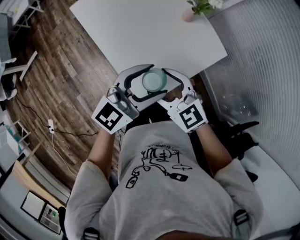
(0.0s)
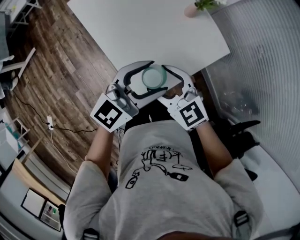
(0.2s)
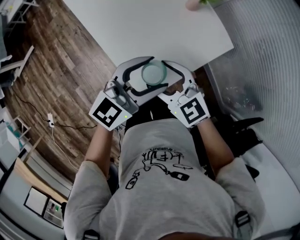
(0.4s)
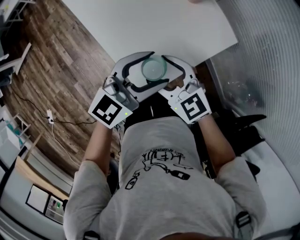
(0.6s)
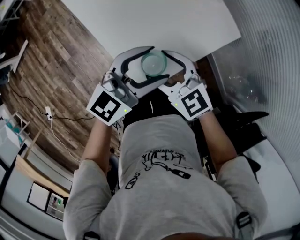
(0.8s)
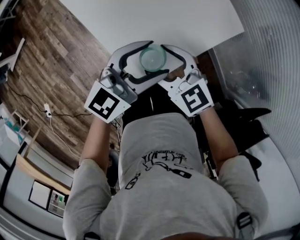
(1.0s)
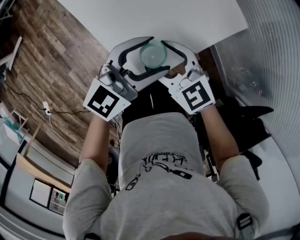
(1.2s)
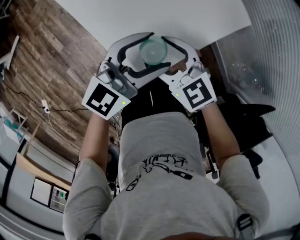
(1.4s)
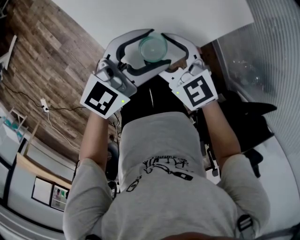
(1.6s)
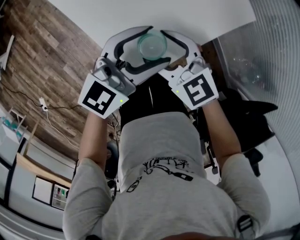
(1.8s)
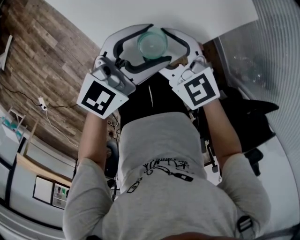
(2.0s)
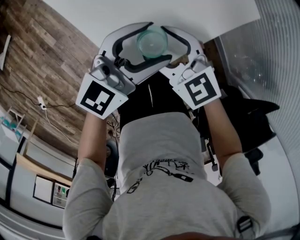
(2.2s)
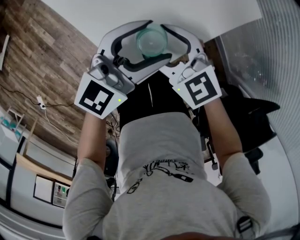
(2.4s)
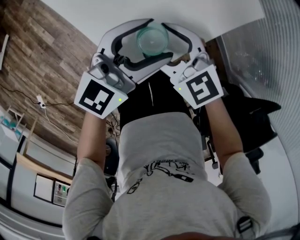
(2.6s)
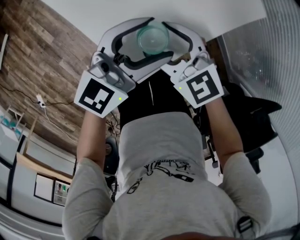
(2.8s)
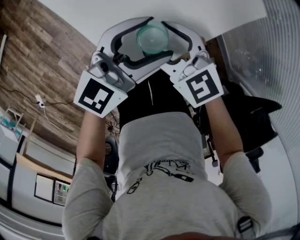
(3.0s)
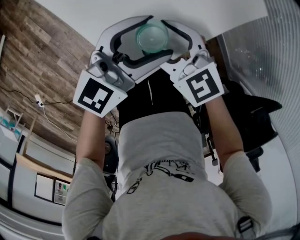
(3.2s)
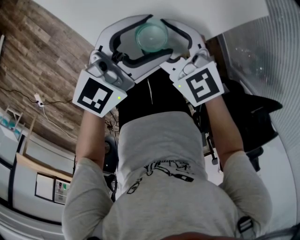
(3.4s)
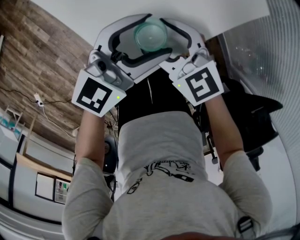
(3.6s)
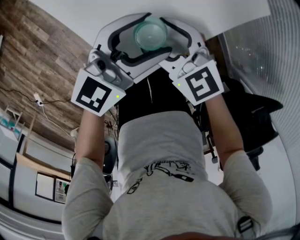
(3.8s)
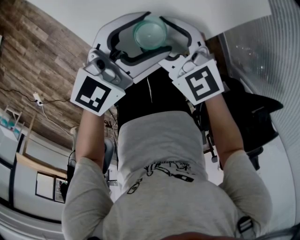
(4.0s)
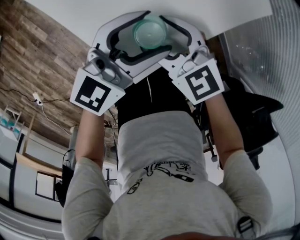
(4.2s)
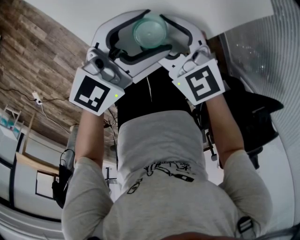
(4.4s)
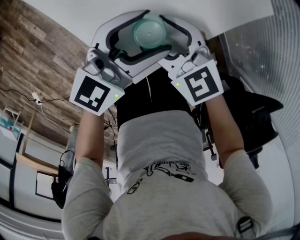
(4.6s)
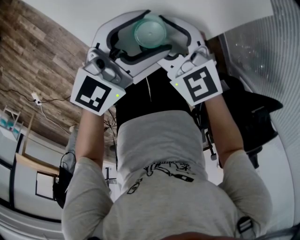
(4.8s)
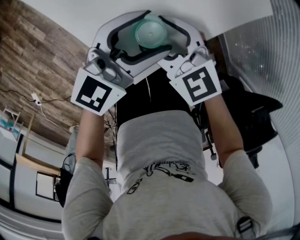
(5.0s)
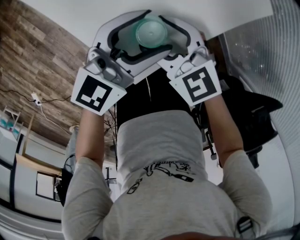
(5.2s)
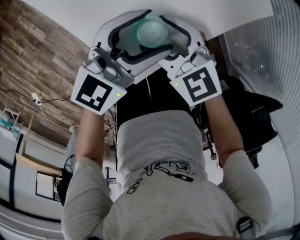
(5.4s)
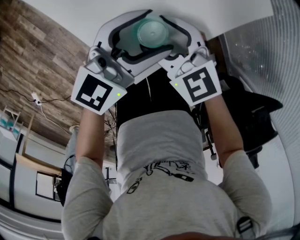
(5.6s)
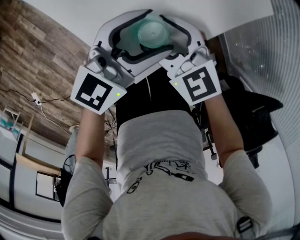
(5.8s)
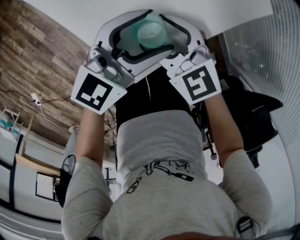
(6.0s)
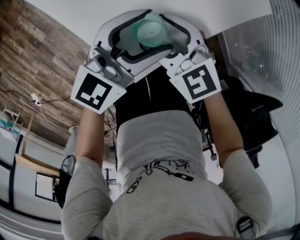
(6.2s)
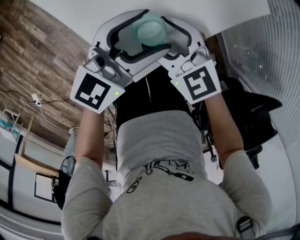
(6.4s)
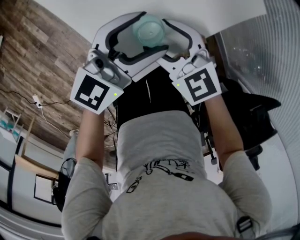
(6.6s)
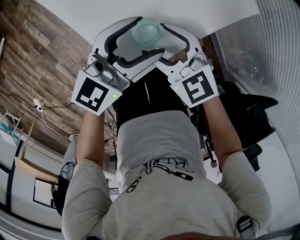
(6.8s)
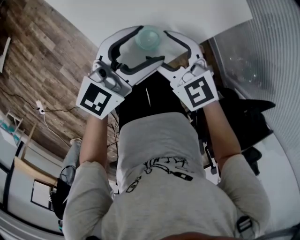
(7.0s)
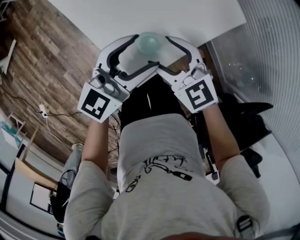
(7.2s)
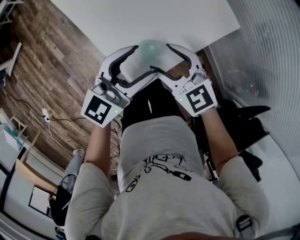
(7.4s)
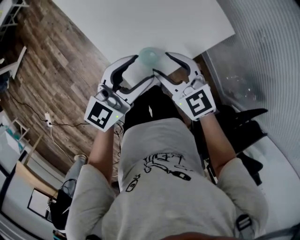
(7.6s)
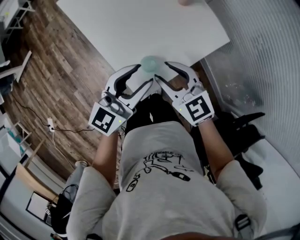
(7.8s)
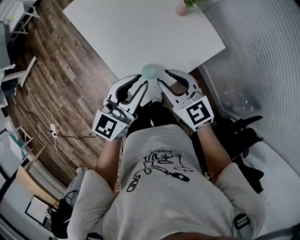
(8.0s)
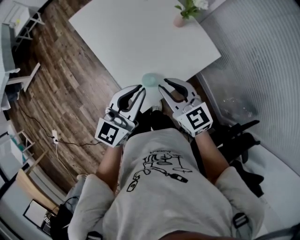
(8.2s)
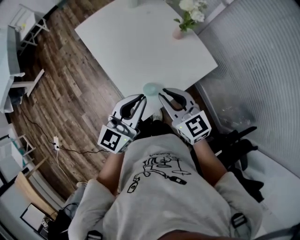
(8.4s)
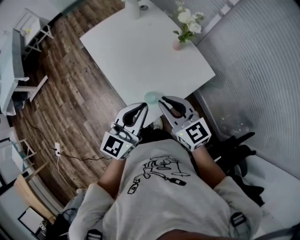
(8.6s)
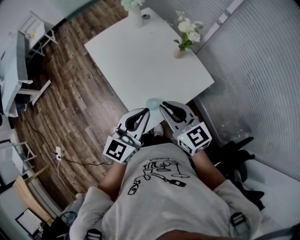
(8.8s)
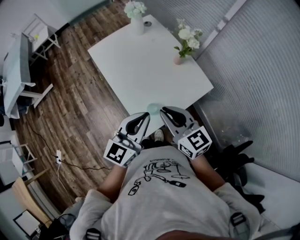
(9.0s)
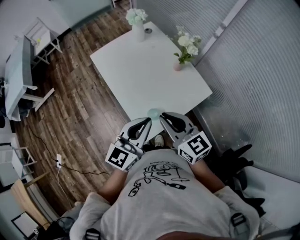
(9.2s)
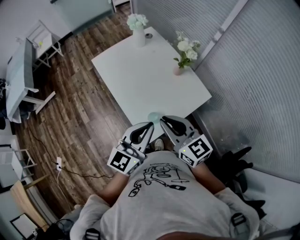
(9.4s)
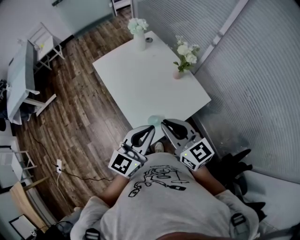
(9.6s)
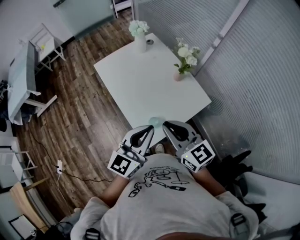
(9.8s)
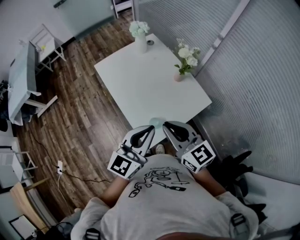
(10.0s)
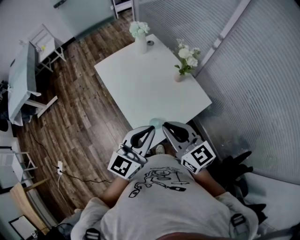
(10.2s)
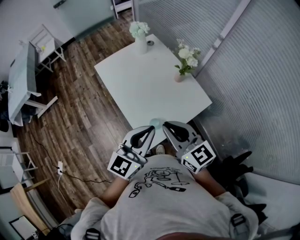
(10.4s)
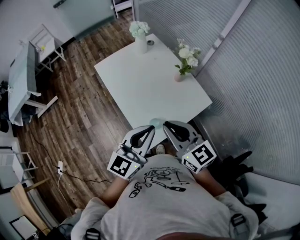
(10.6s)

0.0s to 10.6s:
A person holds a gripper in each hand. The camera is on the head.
0.0s to 1.6s: Both grippers move downward, roughly 15 cm.
1.6s to 3.0s: The grippers make only small movements.
3.0s to 4.6s: The grippers move only a little.
4.6s to 6.0s: Both grippers stay put.
6.0s to 7.6s: Both grippers move upward, approximately 15 cm.
7.6s to 9.0s: The grippers both shift upward by some 15 cm. The right gripper rotates approximately 20 degrees, and closes up. The left gripper closes up.
9.0s to 10.6s: The two grippers go roughly 5 cm upward.

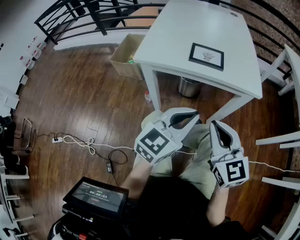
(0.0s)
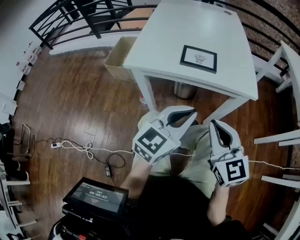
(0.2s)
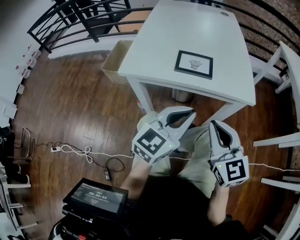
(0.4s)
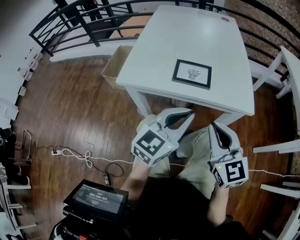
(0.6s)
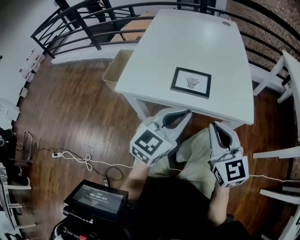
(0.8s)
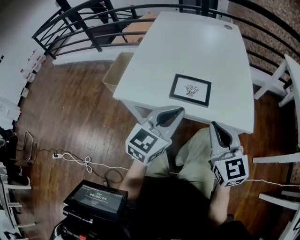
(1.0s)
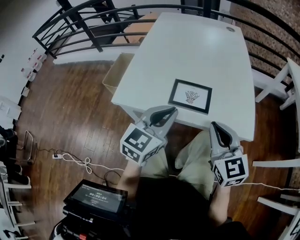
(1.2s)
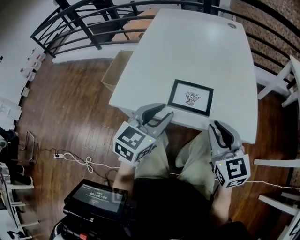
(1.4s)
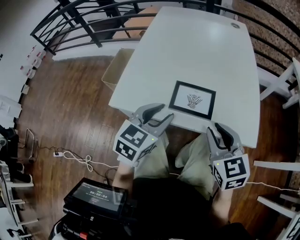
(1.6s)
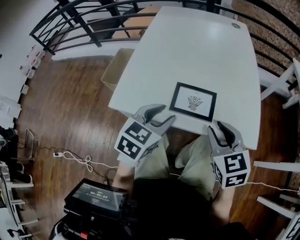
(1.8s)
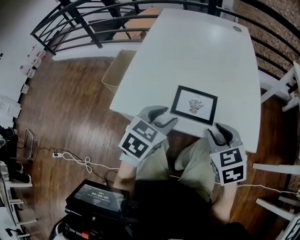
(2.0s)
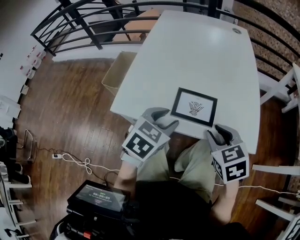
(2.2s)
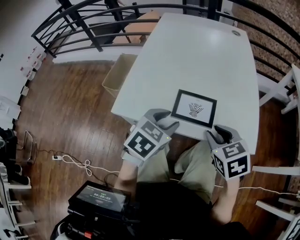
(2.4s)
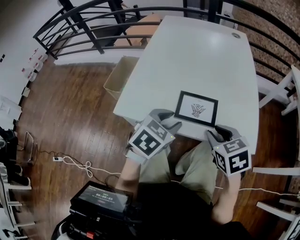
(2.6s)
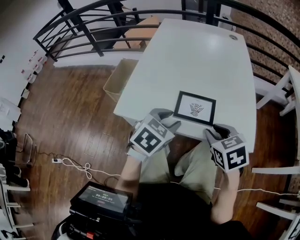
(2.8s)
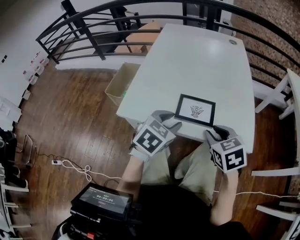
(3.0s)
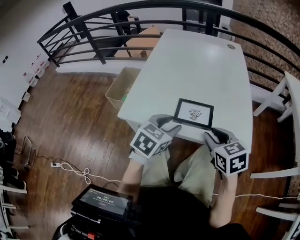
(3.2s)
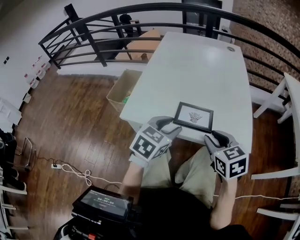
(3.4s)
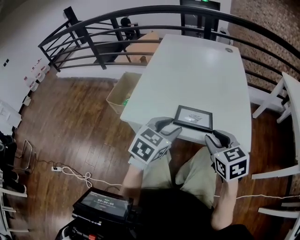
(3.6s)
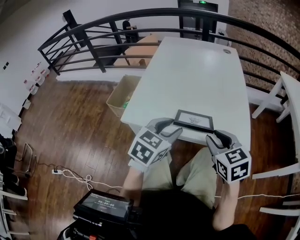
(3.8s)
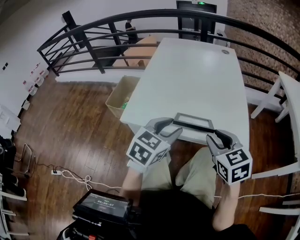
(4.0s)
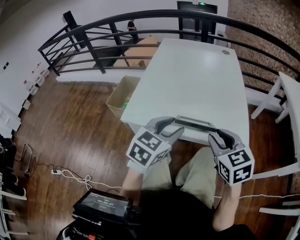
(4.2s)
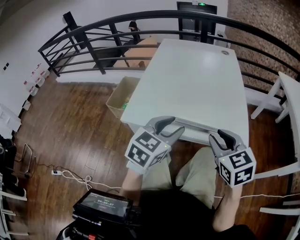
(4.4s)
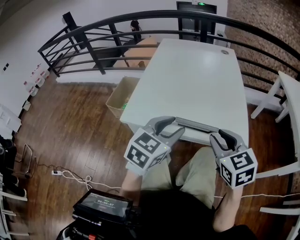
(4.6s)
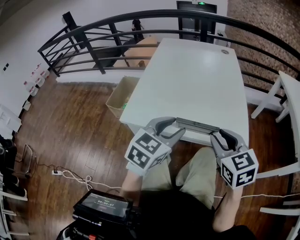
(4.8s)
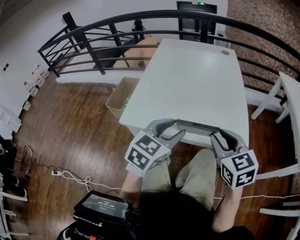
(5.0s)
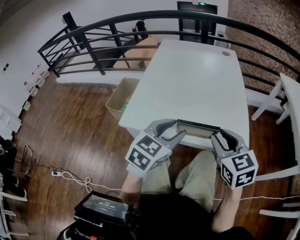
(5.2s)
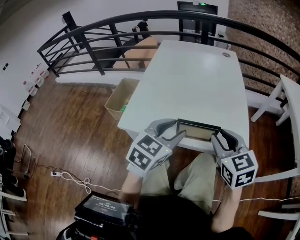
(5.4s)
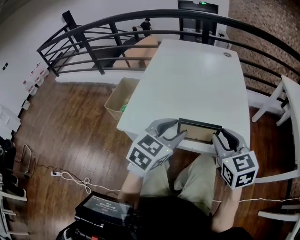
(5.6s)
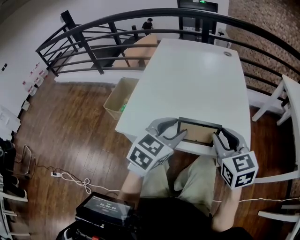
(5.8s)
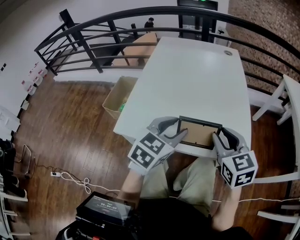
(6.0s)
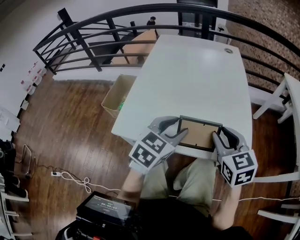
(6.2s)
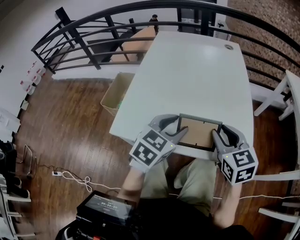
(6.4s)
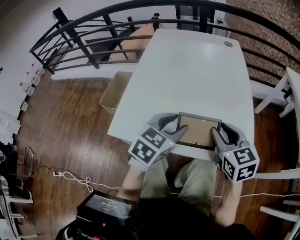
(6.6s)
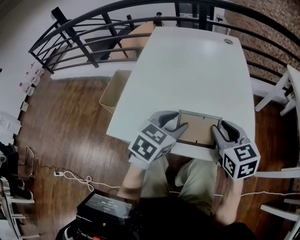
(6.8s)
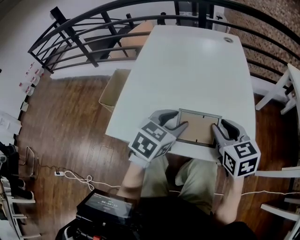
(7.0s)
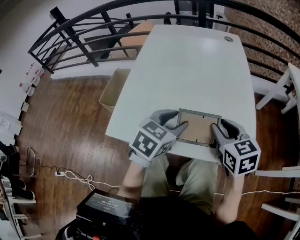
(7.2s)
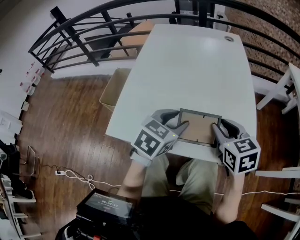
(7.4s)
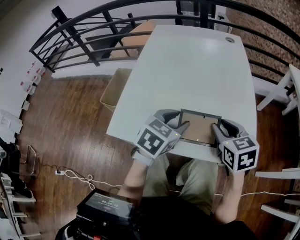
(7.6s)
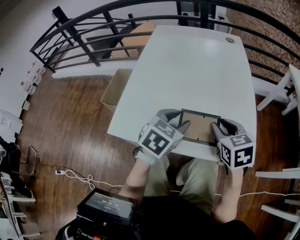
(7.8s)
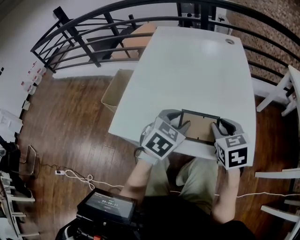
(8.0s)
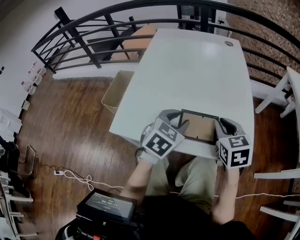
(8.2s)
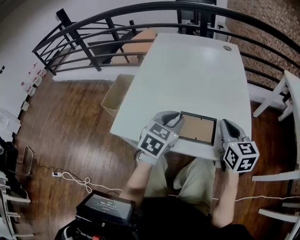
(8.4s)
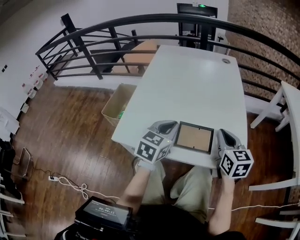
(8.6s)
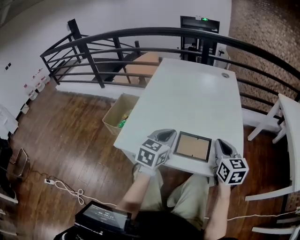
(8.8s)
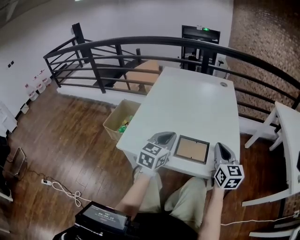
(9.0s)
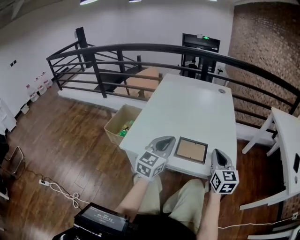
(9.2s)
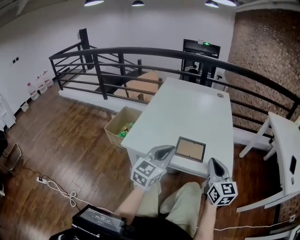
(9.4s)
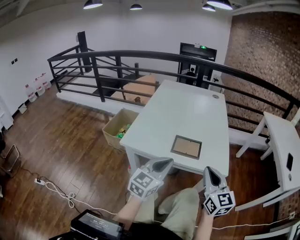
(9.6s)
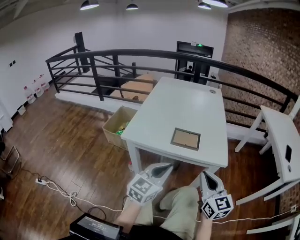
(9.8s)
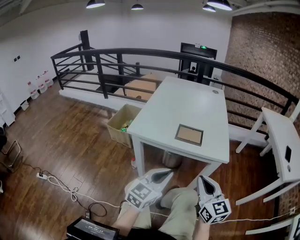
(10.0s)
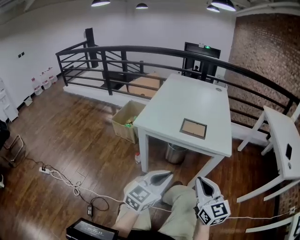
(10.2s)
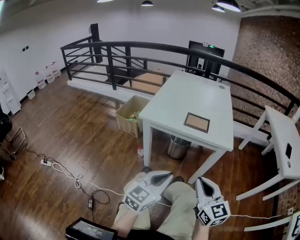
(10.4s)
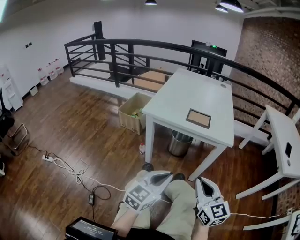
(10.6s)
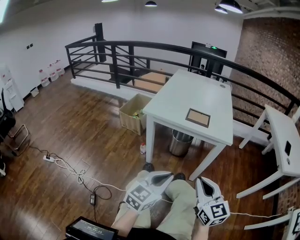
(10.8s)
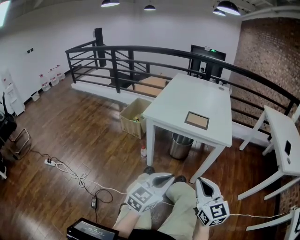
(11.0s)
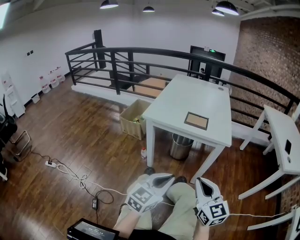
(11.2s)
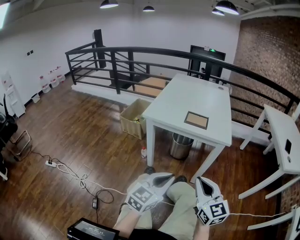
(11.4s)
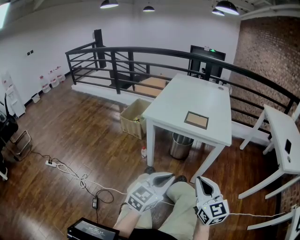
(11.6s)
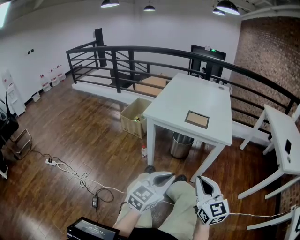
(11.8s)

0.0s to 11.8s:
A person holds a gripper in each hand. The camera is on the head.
0.0s to 1.4s: Both grippers travel together forward, roughly 20 cm. The left gripper opens up.
1.4s to 3.0s: The left gripper rotates approximately 20 degrees; the right gripper ends up about 5 cm from where it was, and rotates roughly 30 degrees.
3.0s to 4.4s: The two grippers go some 10 cm upward.
4.4s to 6.0s: The grippers both shift forward by roughly 5 cm.
6.0s to 7.4s: The grippers both shift forward and downward by some 10 cm.
7.4s to 8.8s: The left gripper closes up. Meanwhile the right gripper closes up.
8.8s to 10.4s: The two grippers travel together, backward, approximately 40 cm.
10.4s to 11.8s: The left gripper is displaced backward by some 5 cm.

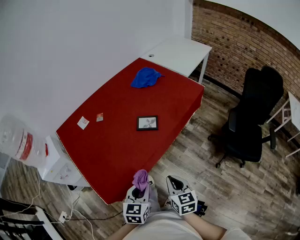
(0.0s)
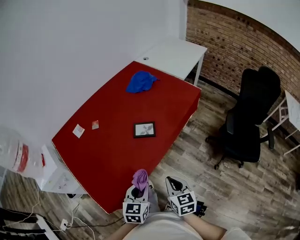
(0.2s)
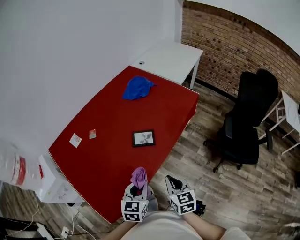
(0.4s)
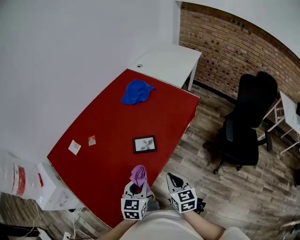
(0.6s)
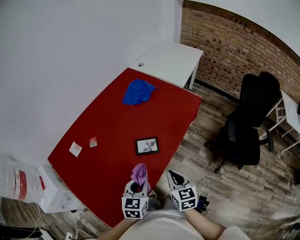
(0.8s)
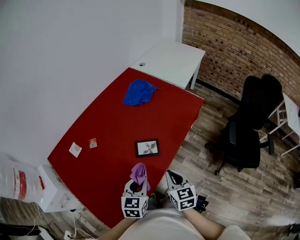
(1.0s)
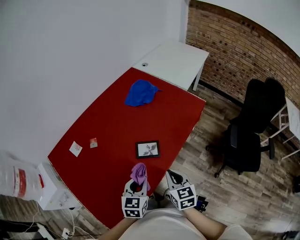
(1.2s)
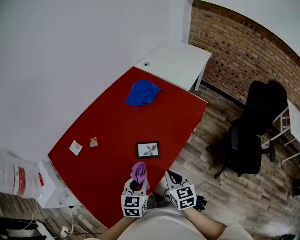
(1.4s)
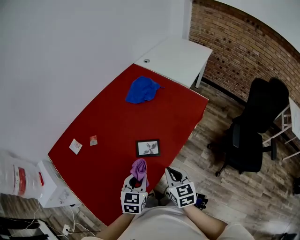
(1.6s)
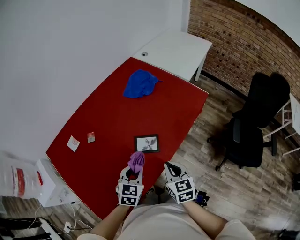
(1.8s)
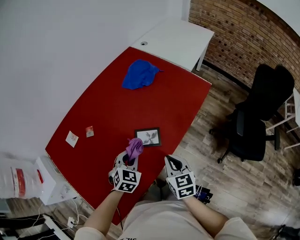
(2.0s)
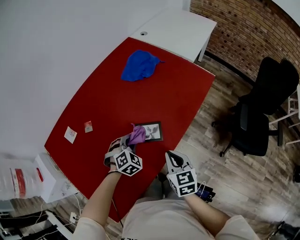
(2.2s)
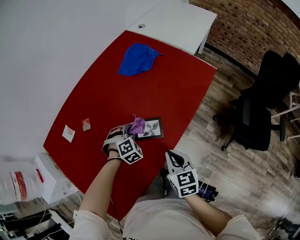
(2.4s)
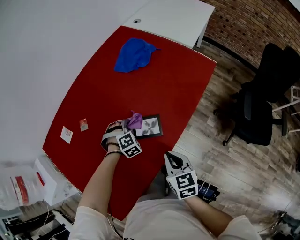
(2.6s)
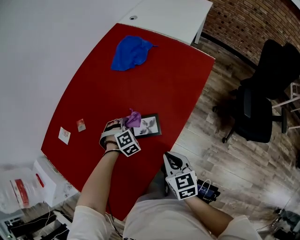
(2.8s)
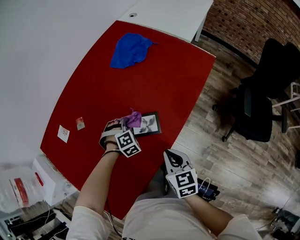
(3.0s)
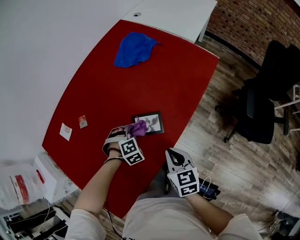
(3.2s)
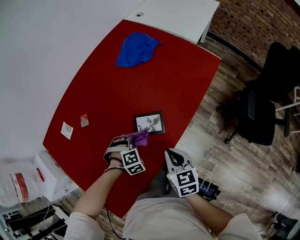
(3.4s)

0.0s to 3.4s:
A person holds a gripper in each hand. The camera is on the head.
0.0s to 1.6s: The grippers both shift forward by some 25 cm.
1.6s to 3.4s: The right gripper heads downward, covering some 10 cm; the left gripper travels downward and forward by about 20 cm, and twists approximately 70 degrees clockwise, seen from behind.
